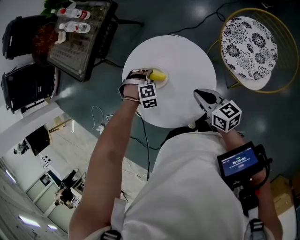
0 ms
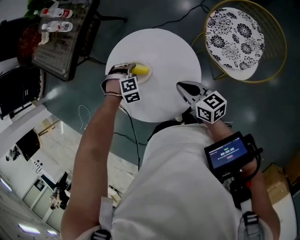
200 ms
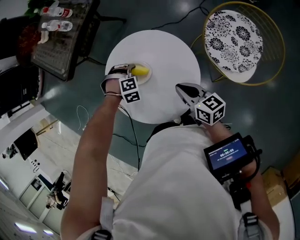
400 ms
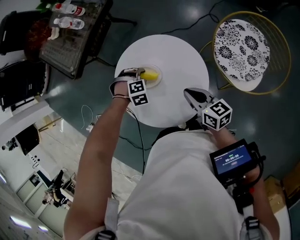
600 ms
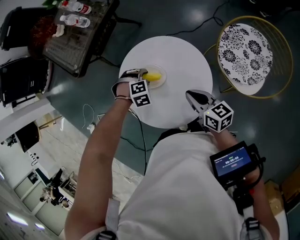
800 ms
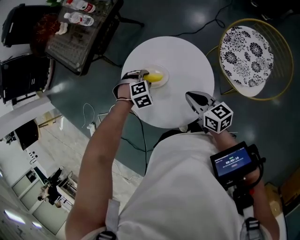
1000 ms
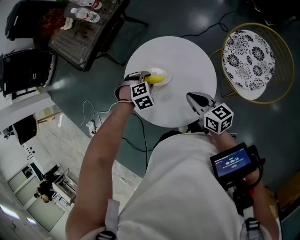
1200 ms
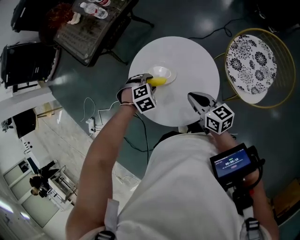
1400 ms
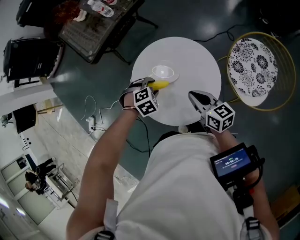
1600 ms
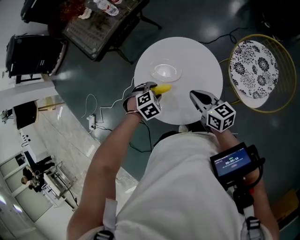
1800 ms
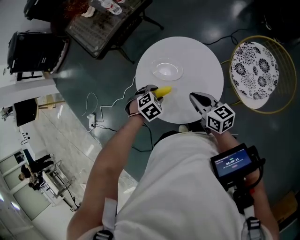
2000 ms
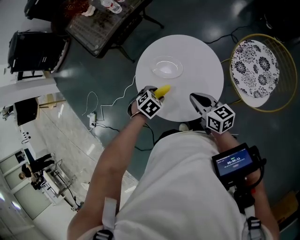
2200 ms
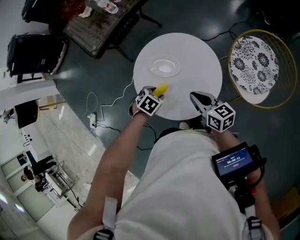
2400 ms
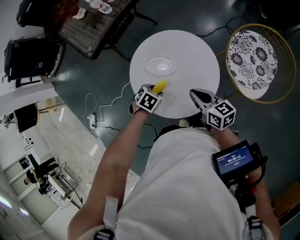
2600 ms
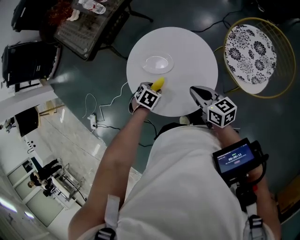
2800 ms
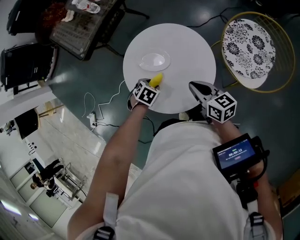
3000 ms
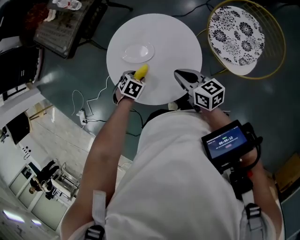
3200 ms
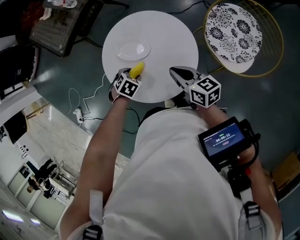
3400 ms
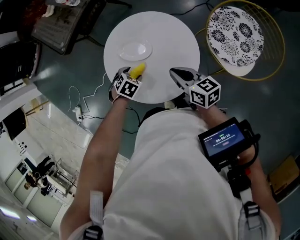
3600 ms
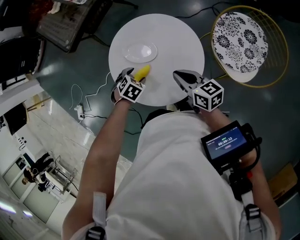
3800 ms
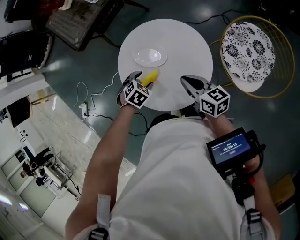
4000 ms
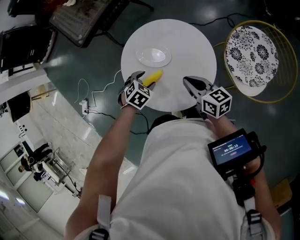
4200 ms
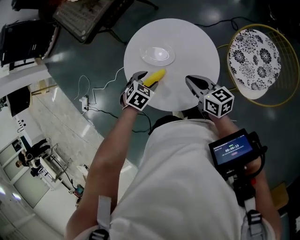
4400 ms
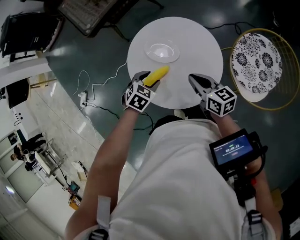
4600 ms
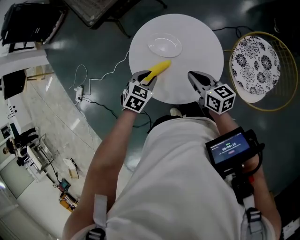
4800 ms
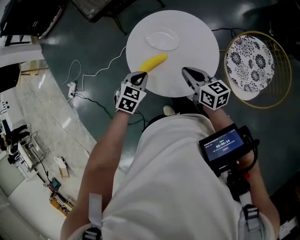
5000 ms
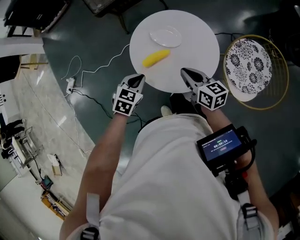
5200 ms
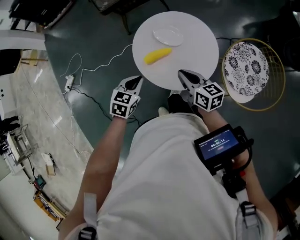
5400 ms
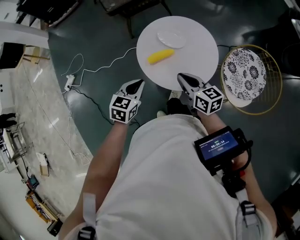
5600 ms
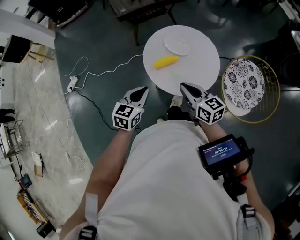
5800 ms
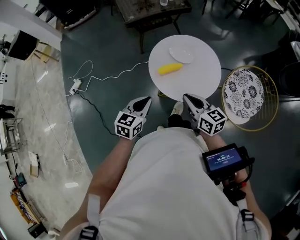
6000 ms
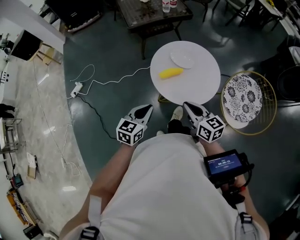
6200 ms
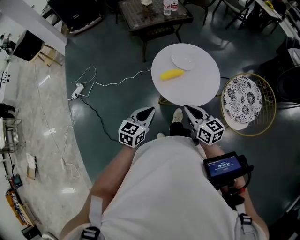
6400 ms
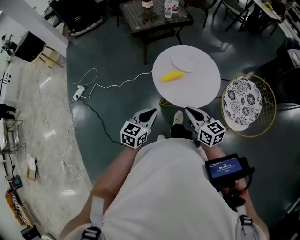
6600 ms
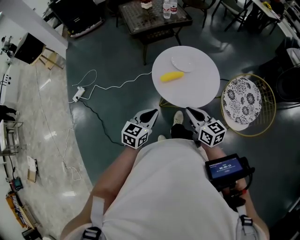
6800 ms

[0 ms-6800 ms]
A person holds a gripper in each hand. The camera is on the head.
0 ms to 1400 ms: The left gripper changes place by approximately 5 cm, and swivels approximately 30 degrees.
1400 ms to 2800 ms: The left gripper shifts by some 10 cm, and twists approximately 40 degrees counterclockwise, seen from behind.
2800 ms to 4000 ms: There are only small adjustments of the grippers.
4000 ms to 5400 ms: The left gripper shifts by roughly 20 cm, tilts its fingers some 30 degrees upward, and closes its fingers. The right gripper ends up roughly 10 cm from where it was.
5400 ms to 6800 ms: Both grippers move backward and upward, about 15 cm. The left gripper changes its angle by some 20 degrees.

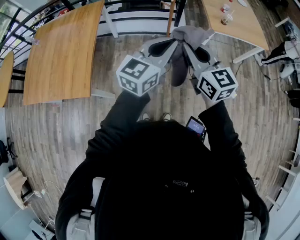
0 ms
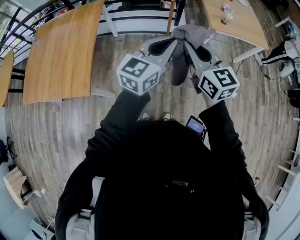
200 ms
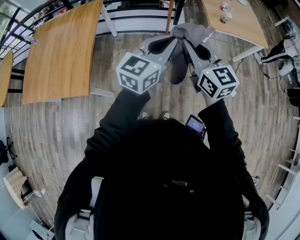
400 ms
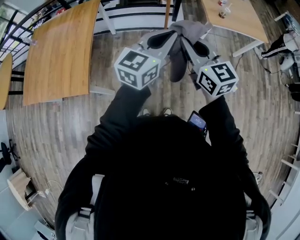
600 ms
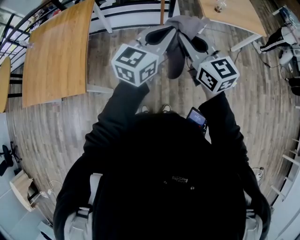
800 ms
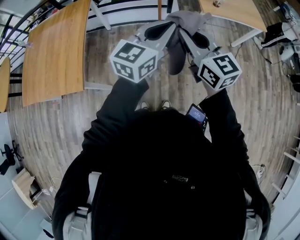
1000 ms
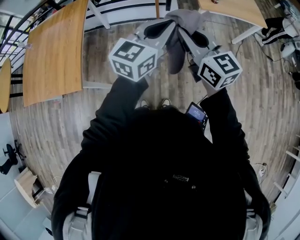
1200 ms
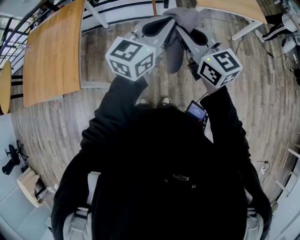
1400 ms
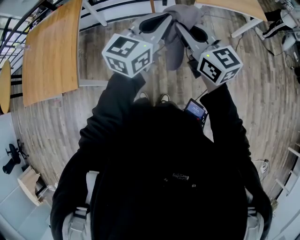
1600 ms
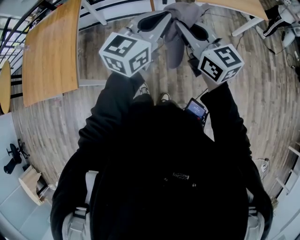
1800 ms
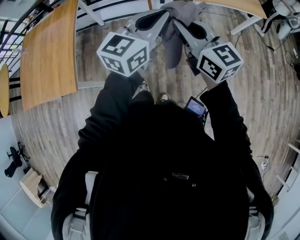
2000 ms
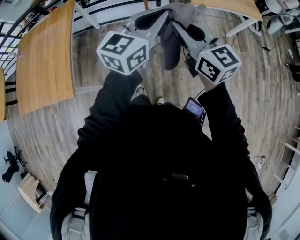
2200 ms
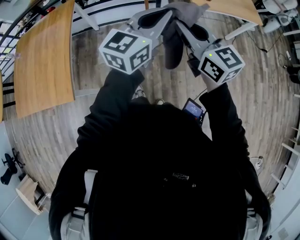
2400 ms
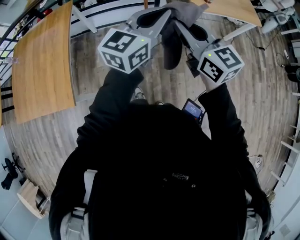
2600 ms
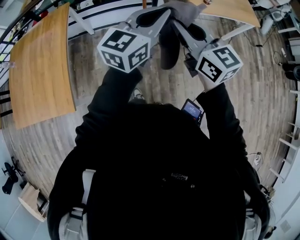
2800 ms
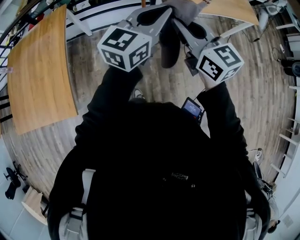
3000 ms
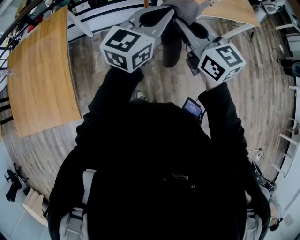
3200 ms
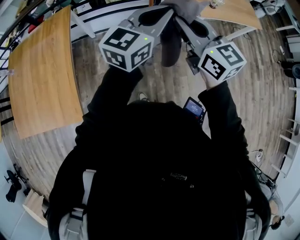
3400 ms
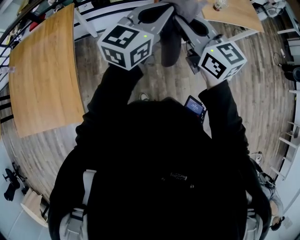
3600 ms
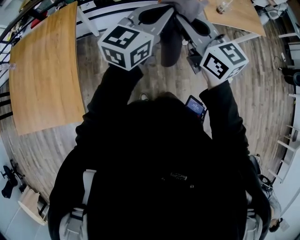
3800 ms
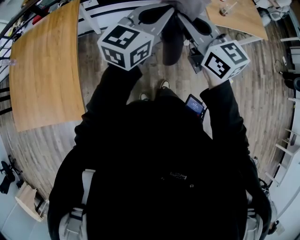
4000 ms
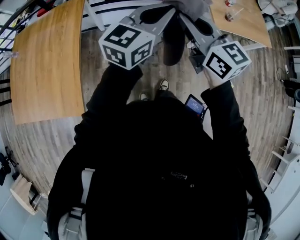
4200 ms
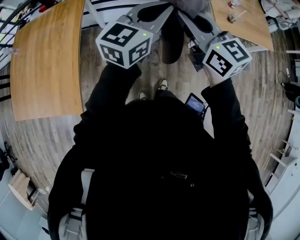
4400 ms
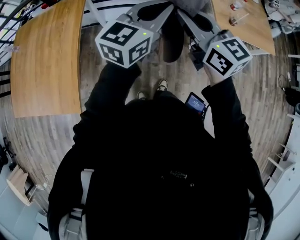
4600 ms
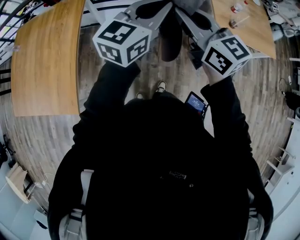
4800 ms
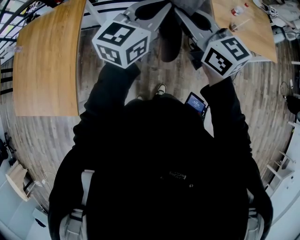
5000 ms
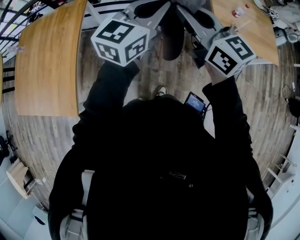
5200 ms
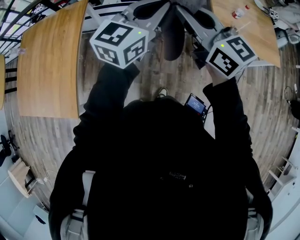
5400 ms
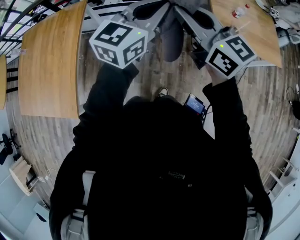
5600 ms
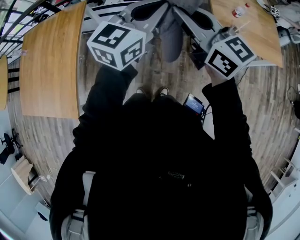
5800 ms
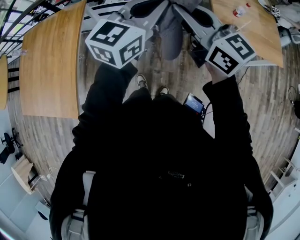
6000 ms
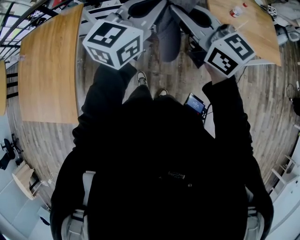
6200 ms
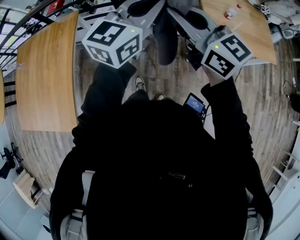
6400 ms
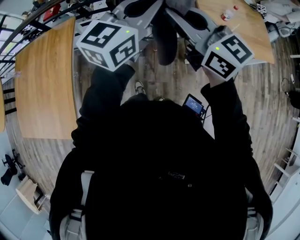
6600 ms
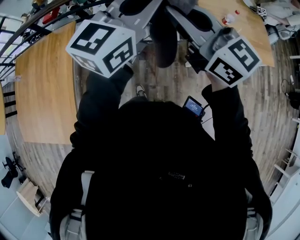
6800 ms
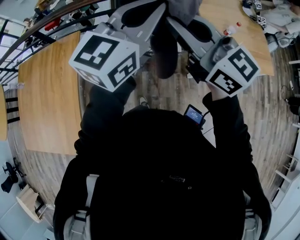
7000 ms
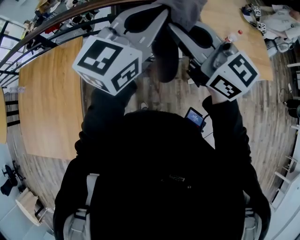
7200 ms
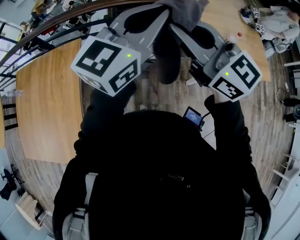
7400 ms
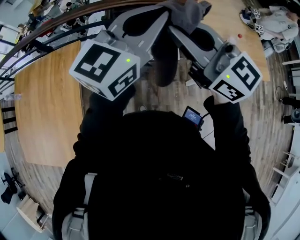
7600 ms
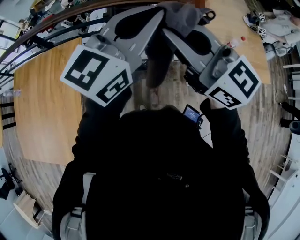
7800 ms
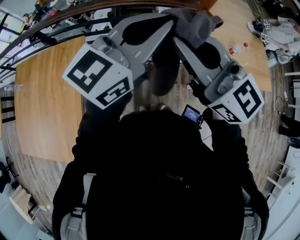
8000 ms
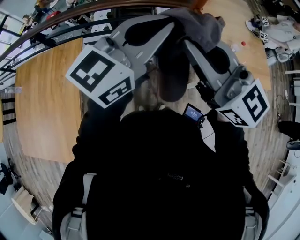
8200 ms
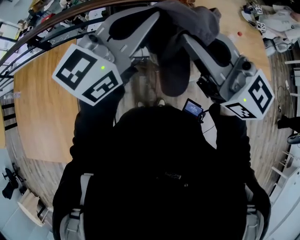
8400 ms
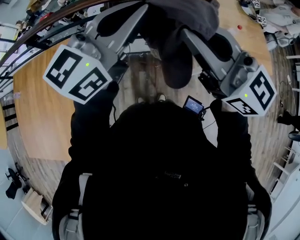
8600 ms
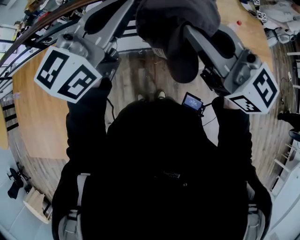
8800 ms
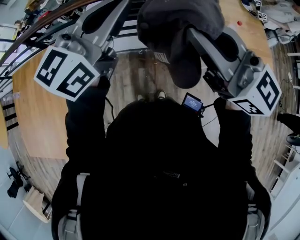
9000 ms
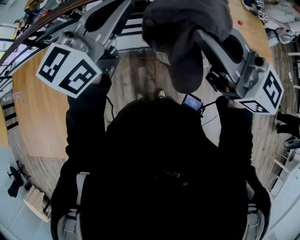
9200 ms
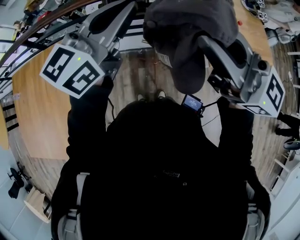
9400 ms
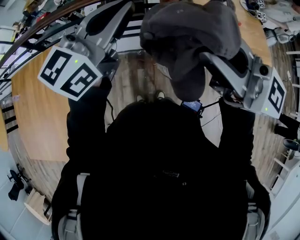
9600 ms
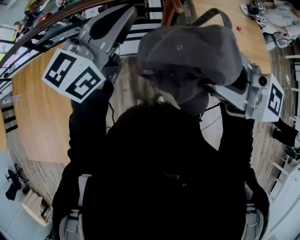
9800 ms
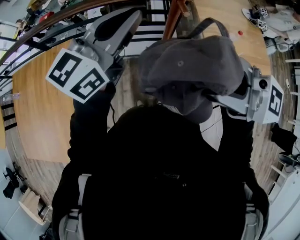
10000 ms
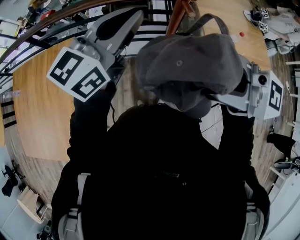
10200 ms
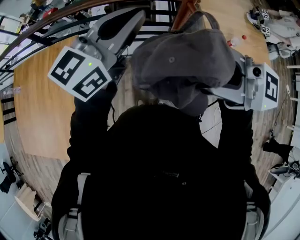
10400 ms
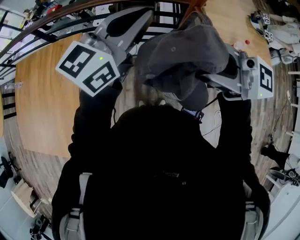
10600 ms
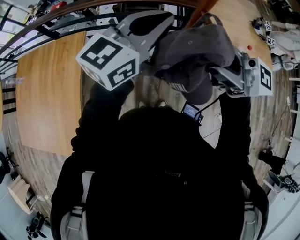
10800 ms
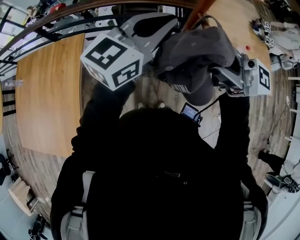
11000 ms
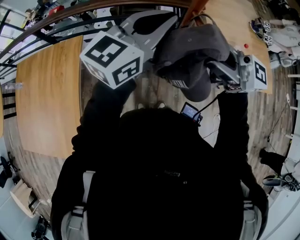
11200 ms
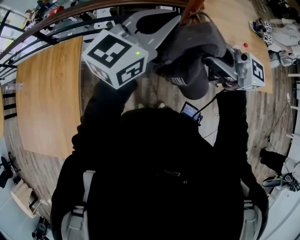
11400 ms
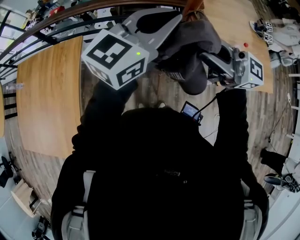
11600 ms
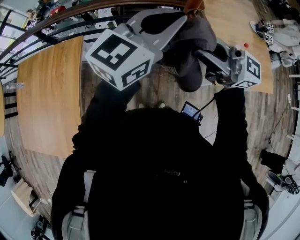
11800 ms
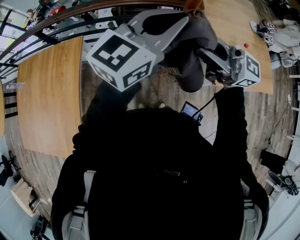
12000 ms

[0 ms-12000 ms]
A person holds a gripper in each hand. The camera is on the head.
0 ms to 1600 ms: Both grippers move to the right, approximately 15 cm.
1600 ms to 3000 ms: Both grippers travel together forward and to the left, about 15 cm.
3000 ms to 4400 ms: Both grippers move to the left and forward, approximately 10 cm.
4400 ms to 6000 ms: The two grippers go approximately 15 cm to the right and forward.
6000 ms to 7600 ms: The right gripper moves forward, to the left and upward, about 20 cm, while the left gripper goes approximately 20 cm forward, upward and to the left.
7600 ms to 9000 ms: The right gripper goes about 10 cm to the right.
9000 ms to 10400 ms: The right gripper shifts by roughly 10 cm, and turns by approximately 40 degrees.
10400 ms to 12000 ms: The left gripper moves some 5 cm, while the right gripper ends up some 15 cm from where it was.

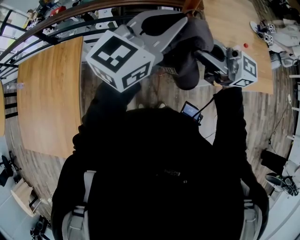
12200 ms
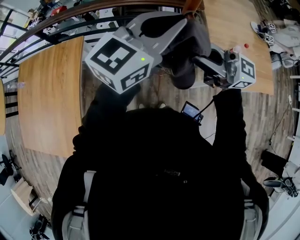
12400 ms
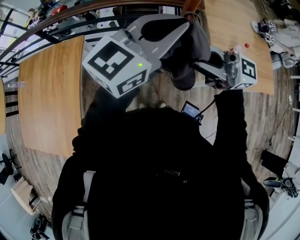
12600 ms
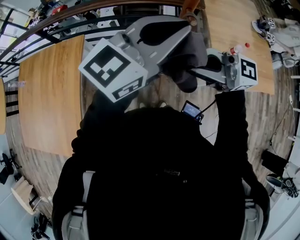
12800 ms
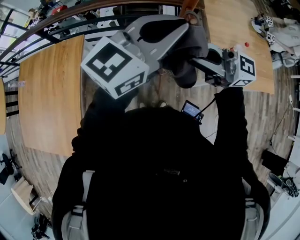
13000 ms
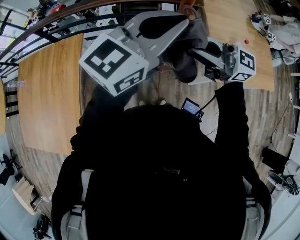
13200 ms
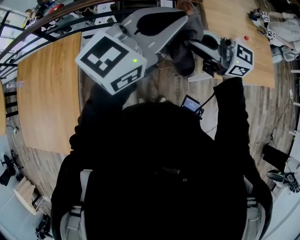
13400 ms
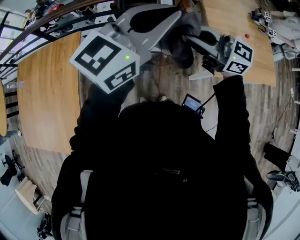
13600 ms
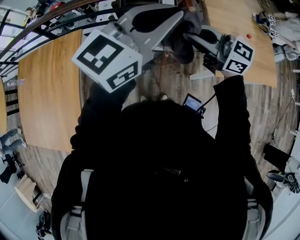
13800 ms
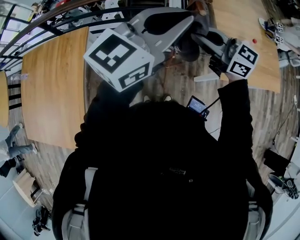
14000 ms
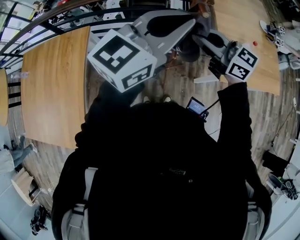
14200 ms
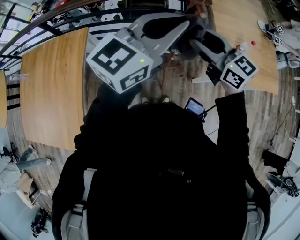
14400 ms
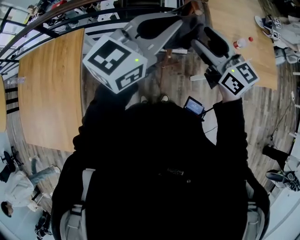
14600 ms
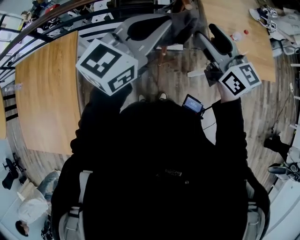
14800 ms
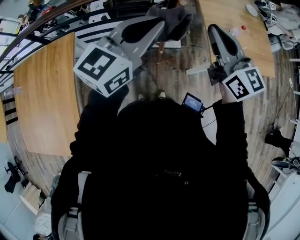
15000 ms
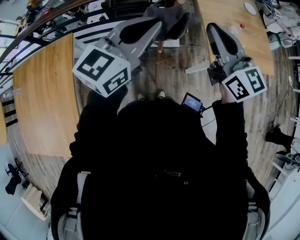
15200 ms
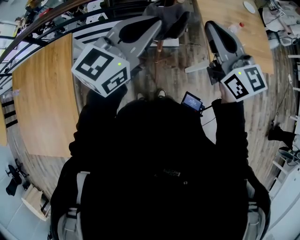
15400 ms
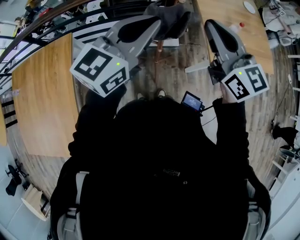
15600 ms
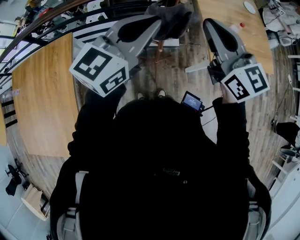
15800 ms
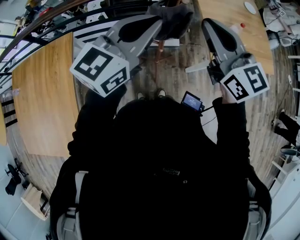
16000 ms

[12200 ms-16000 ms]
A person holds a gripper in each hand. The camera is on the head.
12200 ms to 13400 ms: The right gripper ends up approximately 5 cm from where it was.
13400 ms to 14800 ms: The right gripper changes place by approximately 10 cm, changes its angle by roughly 50 degrees, and opens, while the left gripper is displaced downward by approximately 5 cm.
14800 ms to 16000 ms: The right gripper closes its fingers.

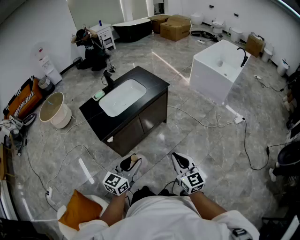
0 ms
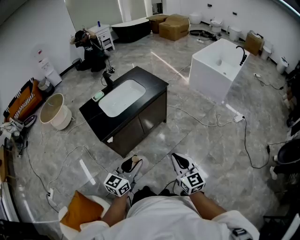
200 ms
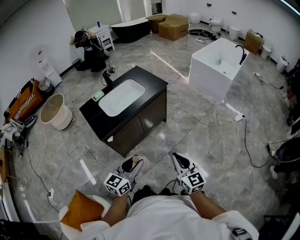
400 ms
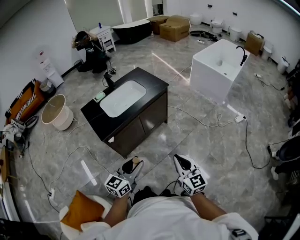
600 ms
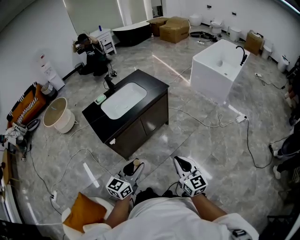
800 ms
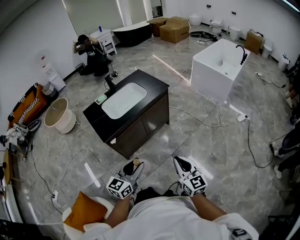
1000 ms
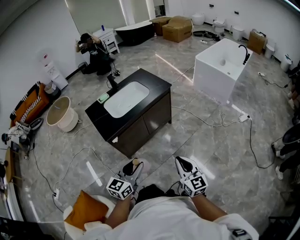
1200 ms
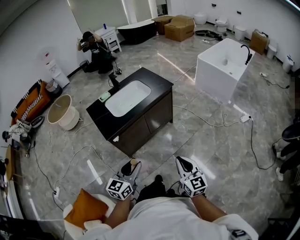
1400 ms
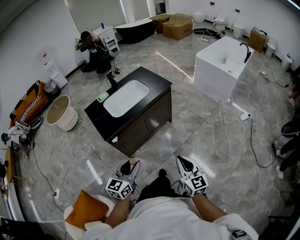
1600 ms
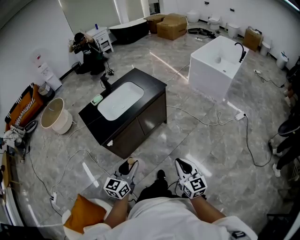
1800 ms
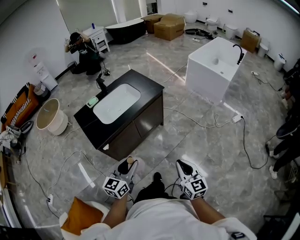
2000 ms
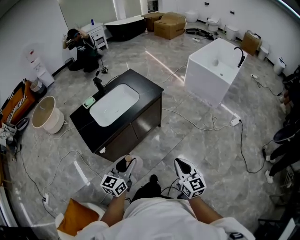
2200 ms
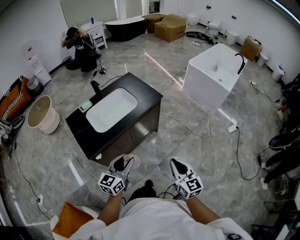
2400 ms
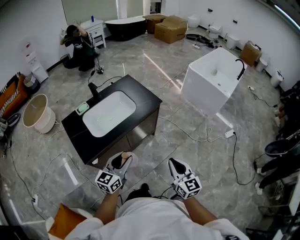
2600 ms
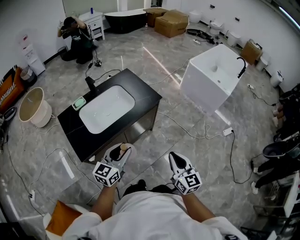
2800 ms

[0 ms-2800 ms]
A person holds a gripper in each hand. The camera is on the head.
0 ms to 1400 ms: The grippers move only a little.
1400 ms to 2800 ms: Both grippers travel together forward, about 30 cm.
